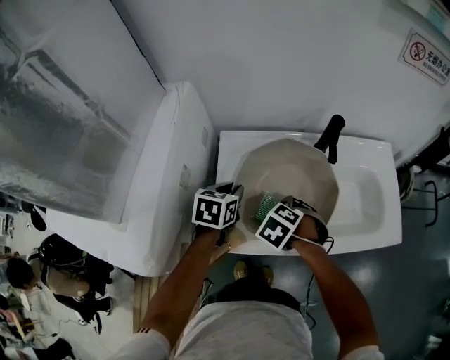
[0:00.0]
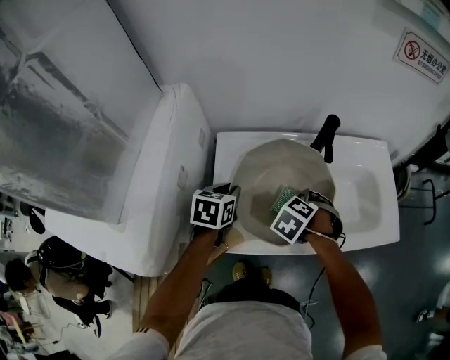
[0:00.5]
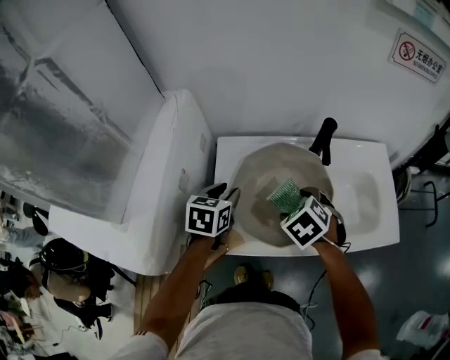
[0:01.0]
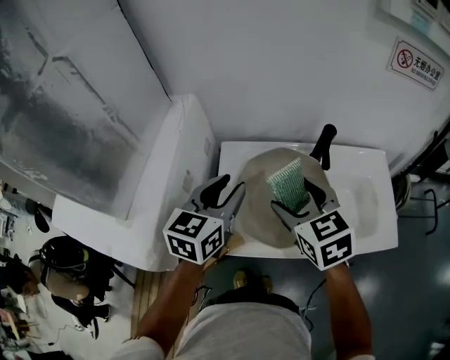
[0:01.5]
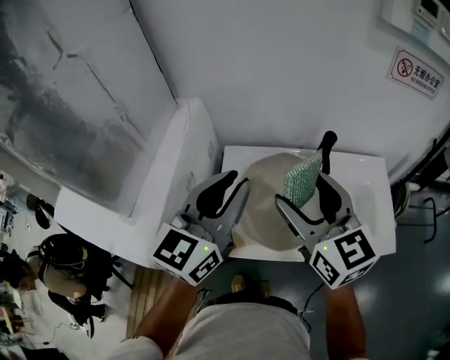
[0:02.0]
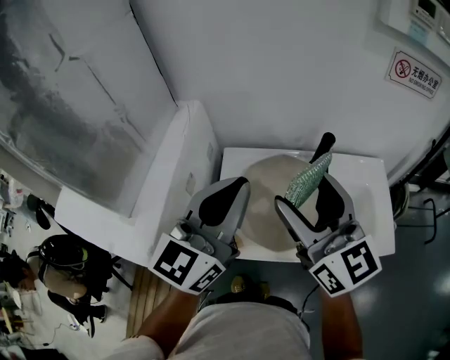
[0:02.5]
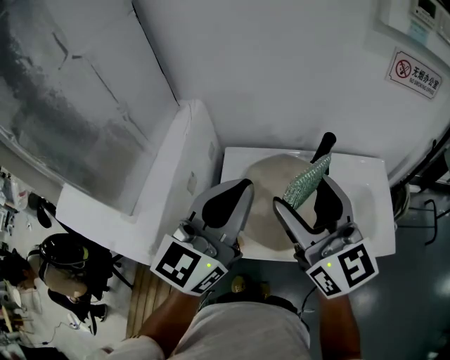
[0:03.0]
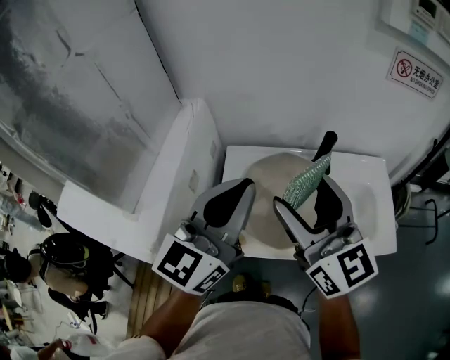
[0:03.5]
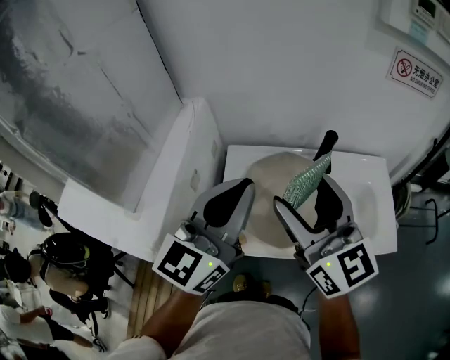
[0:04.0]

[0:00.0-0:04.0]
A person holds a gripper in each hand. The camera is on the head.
0:00.0 to 0:02.0: The grippers both shift upward by approximately 30 cm. The right gripper points its fingers approximately 70 degrees further upward, while the left gripper tips its fingers upward by some 50 degrees.
0:02.0 to 0:04.0: The left gripper closes.

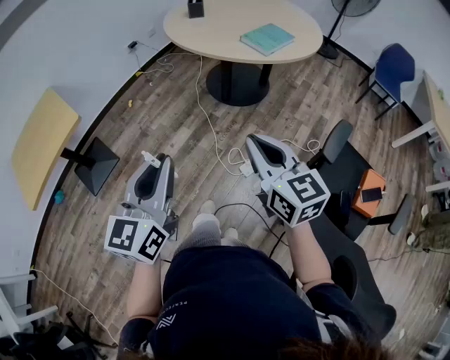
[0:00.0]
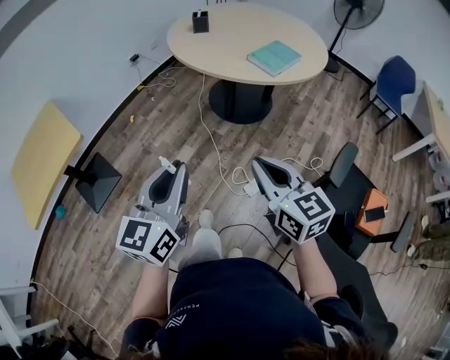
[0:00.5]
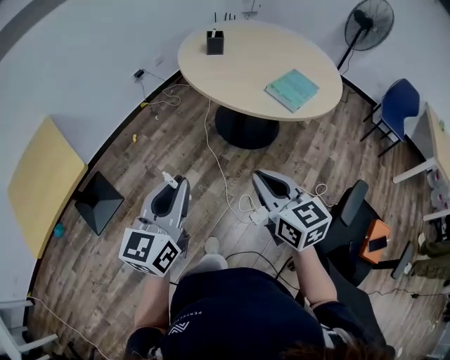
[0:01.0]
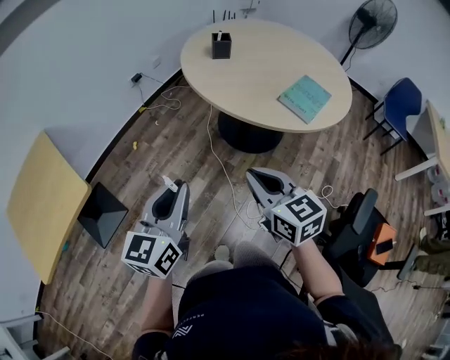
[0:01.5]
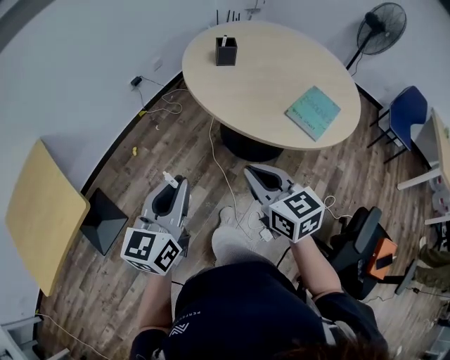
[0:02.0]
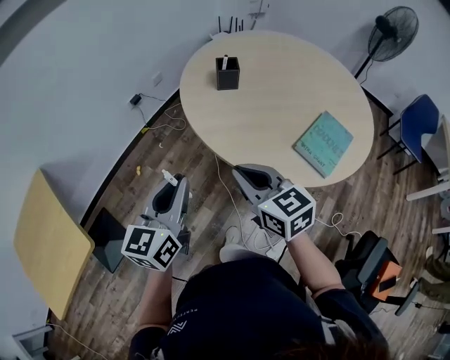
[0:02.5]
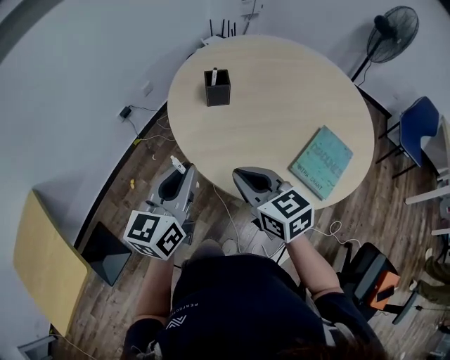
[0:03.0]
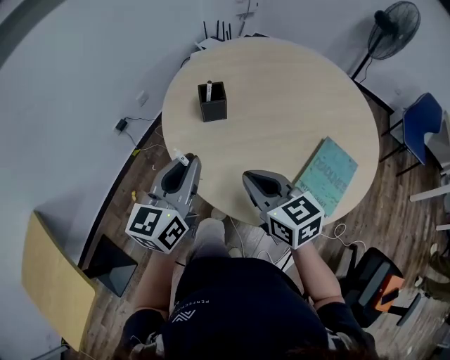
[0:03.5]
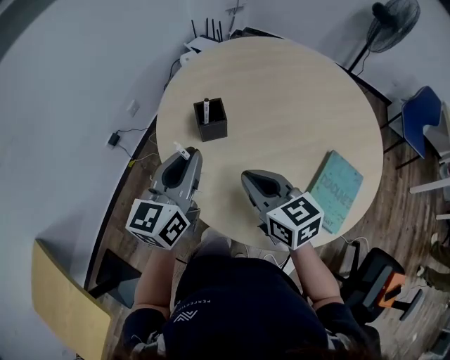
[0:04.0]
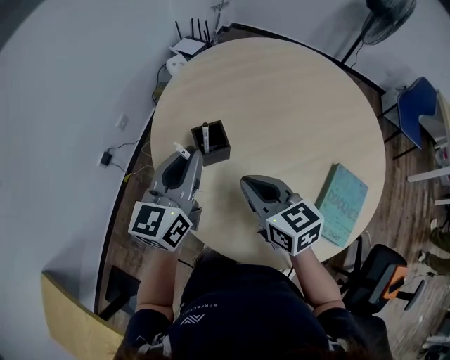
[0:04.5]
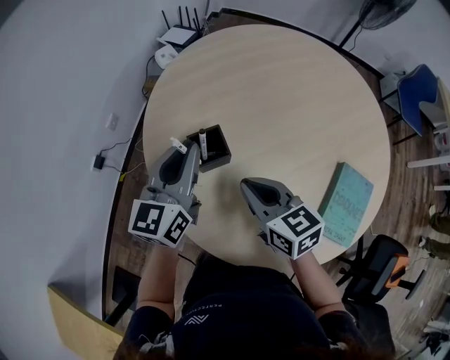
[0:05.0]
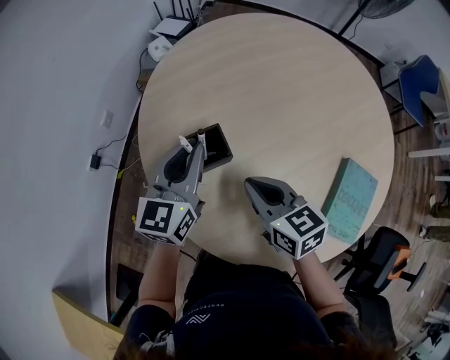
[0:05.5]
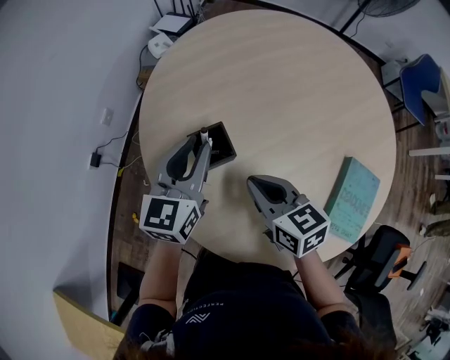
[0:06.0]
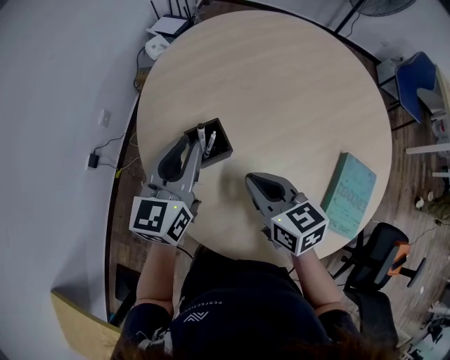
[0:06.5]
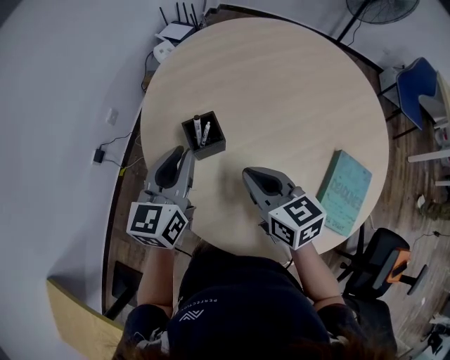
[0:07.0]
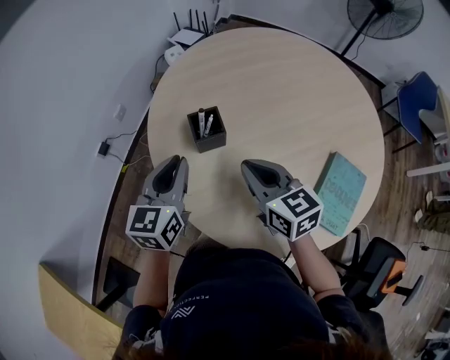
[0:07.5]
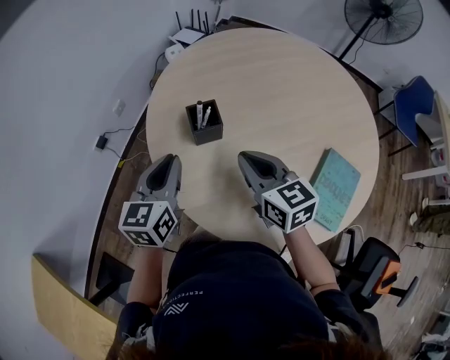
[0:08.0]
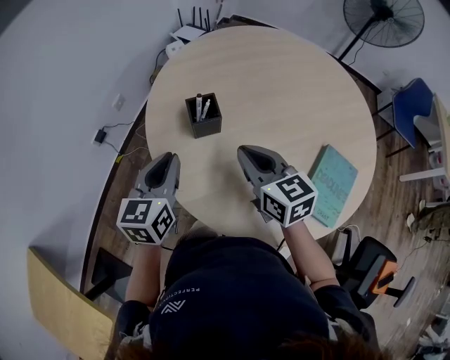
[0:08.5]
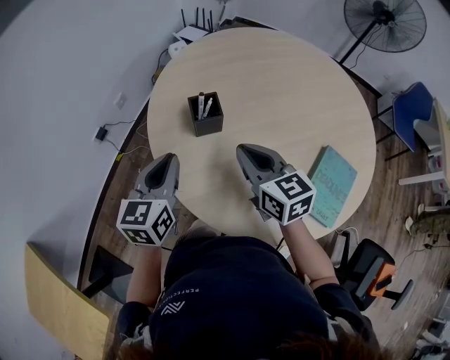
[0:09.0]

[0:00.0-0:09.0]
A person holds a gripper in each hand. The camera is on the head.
0:00.0 to 0:02.0: The grippers both shift forward by some 35 cm.
0:02.0 to 0:04.5: The pair of grippers is taken forward, some 50 cm.
0:04.5 to 0:07.0: The left gripper goes approximately 5 cm downward.
0:07.0 to 0:09.0: The left gripper shifts about 10 cm backward.

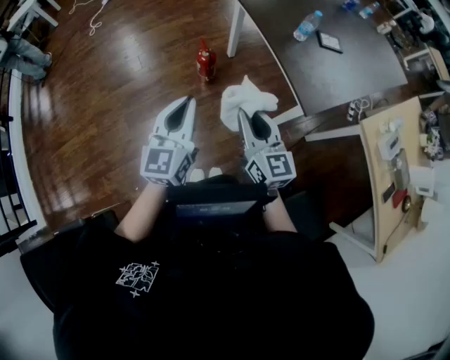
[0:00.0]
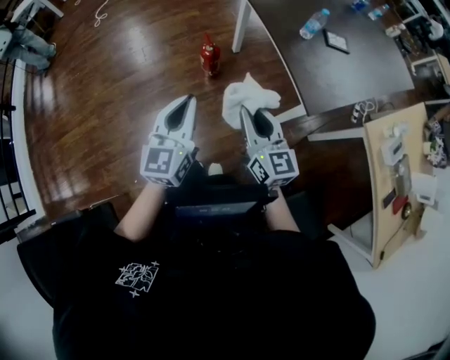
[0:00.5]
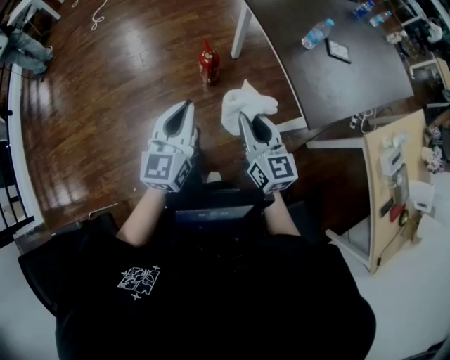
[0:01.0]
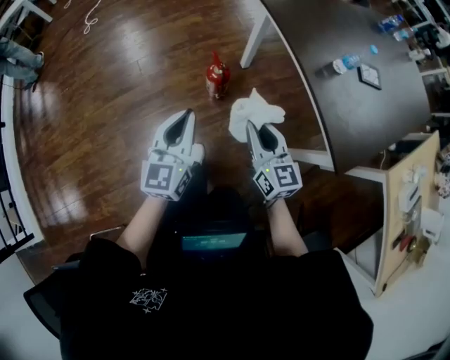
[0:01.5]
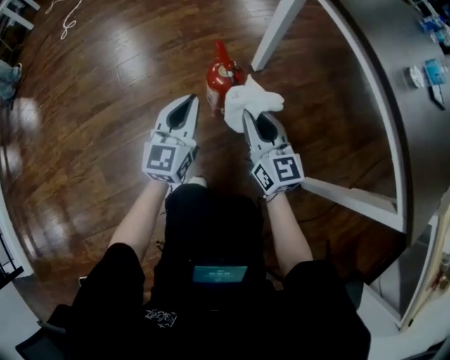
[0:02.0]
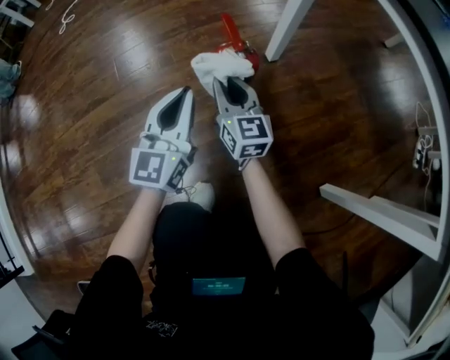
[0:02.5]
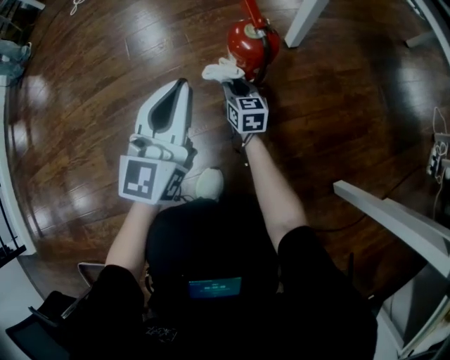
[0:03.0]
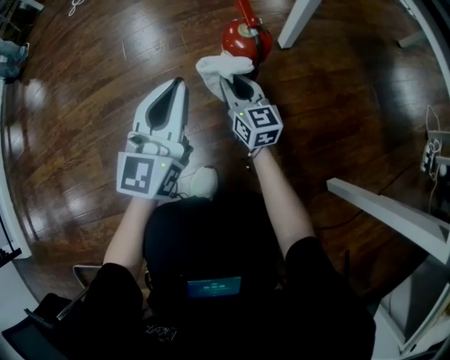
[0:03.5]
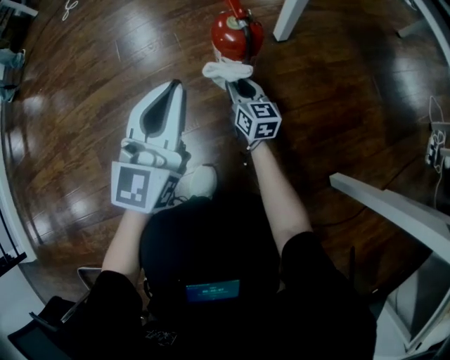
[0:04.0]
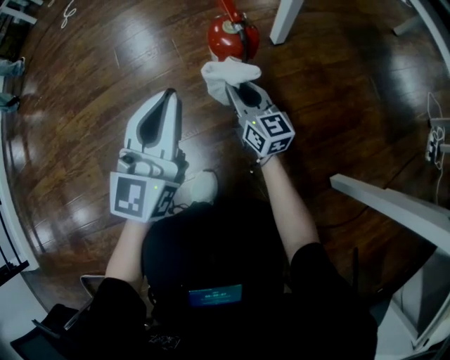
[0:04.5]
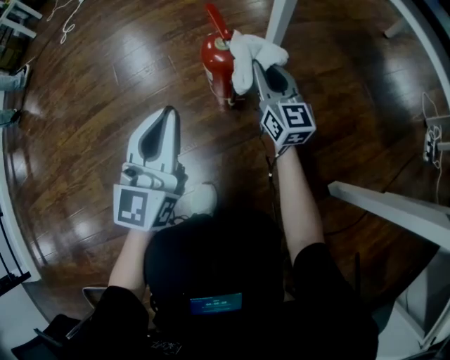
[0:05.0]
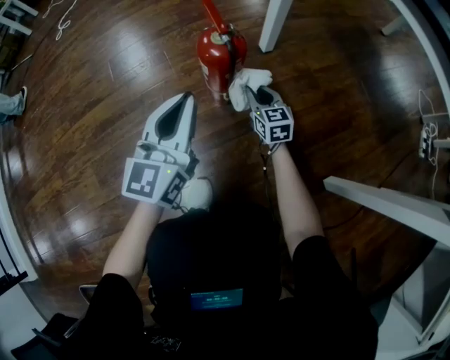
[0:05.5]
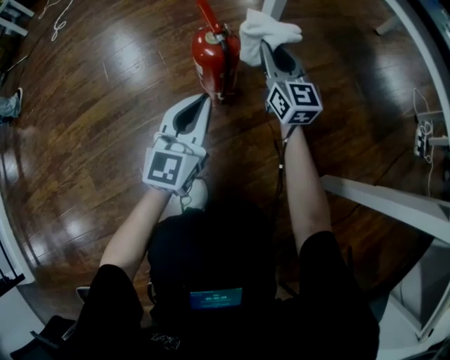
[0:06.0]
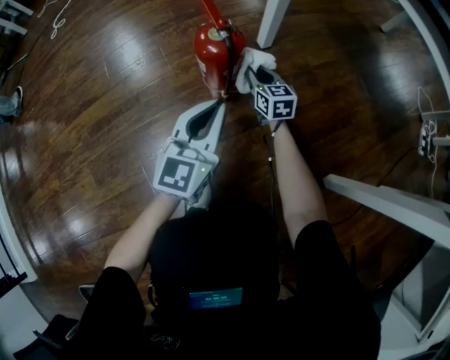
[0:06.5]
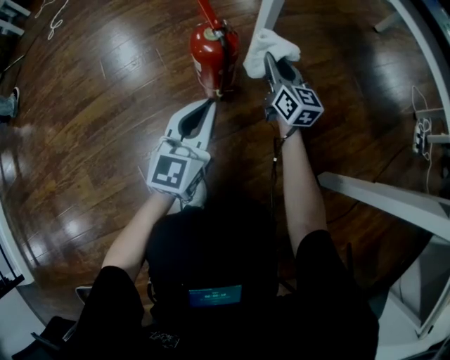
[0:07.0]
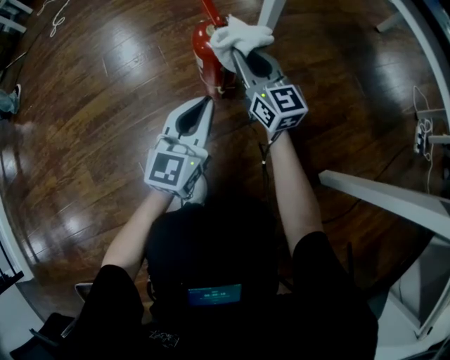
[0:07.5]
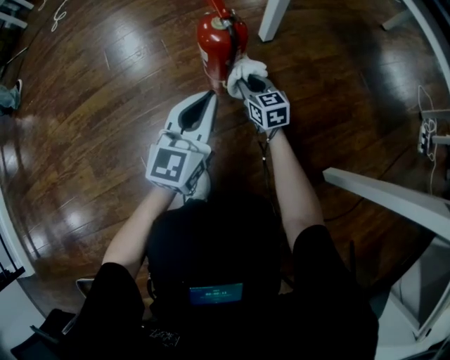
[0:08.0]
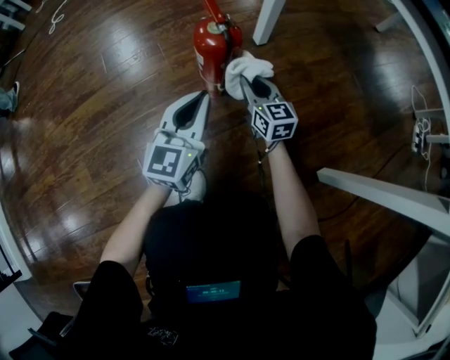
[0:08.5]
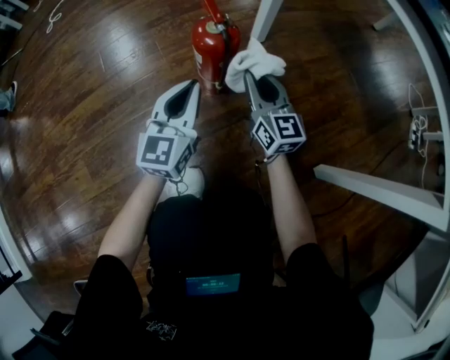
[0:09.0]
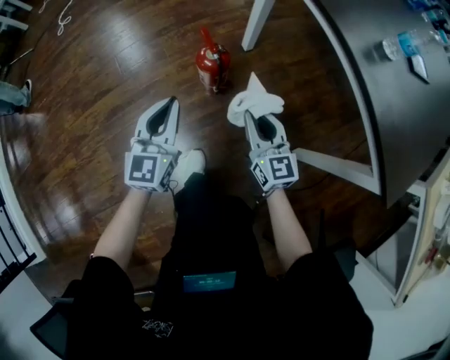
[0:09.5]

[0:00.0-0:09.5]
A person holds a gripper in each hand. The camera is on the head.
0:00.0 to 0:02.0: The grippers both shift downward and forward by about 60 cm.
0:02.0 to 0:04.0: The left gripper travels backward by some 5 cm; the right gripper moves up and down over roughly 30 cm, changing direction 2 times.
0:04.0 to 0:05.5: The right gripper shifts some 10 cm to the right, and moves about 15 cm upward and comes back.
0:05.5 to 0:07.5: The right gripper goes up and down, about 20 cm each way, reversing 2 times, and changes its angle by about 30 degrees. Meanwhile the left gripper moves downward, roughly 5 cm.
0:07.5 to 0:09.5: The right gripper travels upward and backward by approximately 25 cm; the left gripper moves upward, approximately 25 cm.

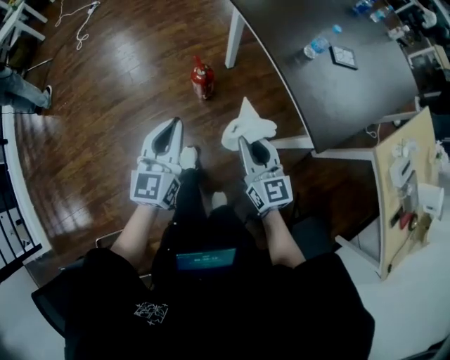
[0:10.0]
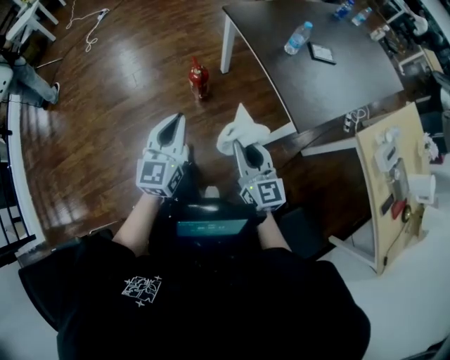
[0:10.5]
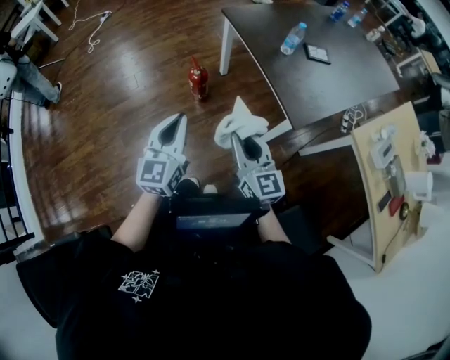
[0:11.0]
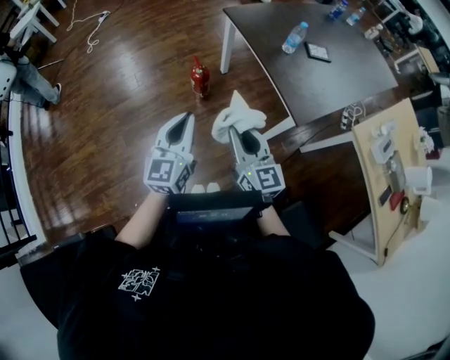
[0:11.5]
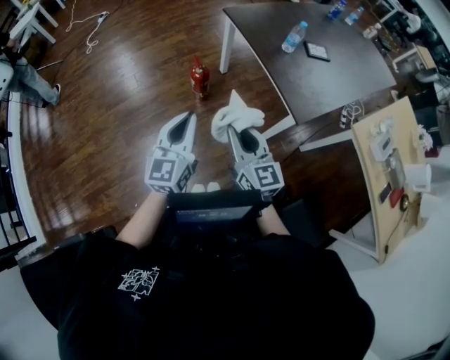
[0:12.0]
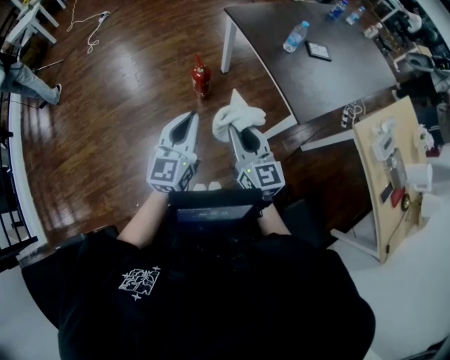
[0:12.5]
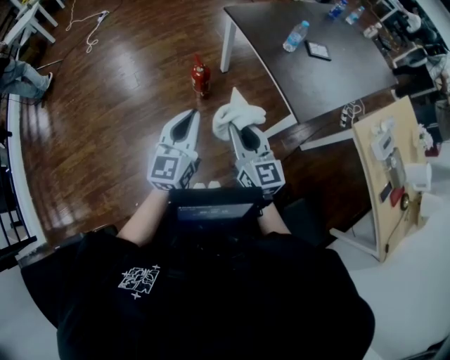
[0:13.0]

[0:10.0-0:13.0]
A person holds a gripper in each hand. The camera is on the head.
0:10.0 to 0:11.5: The grippers both shift backward and upward by roughly 20 cm.
0:11.5 to 0:13.0: Both grippers stay about where they are.

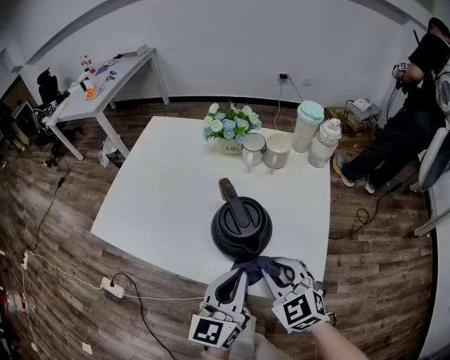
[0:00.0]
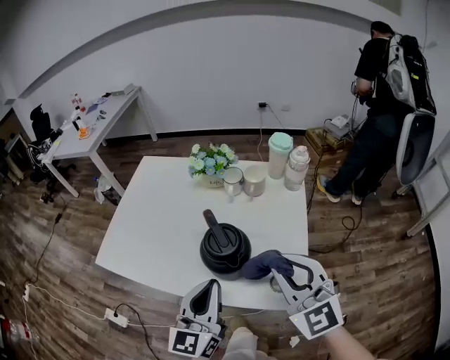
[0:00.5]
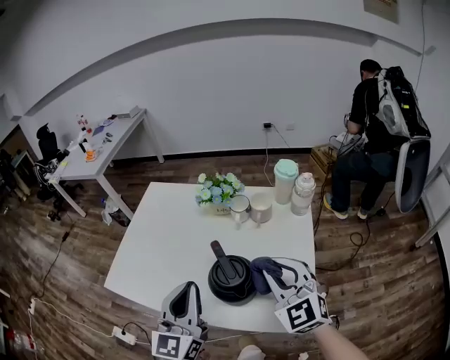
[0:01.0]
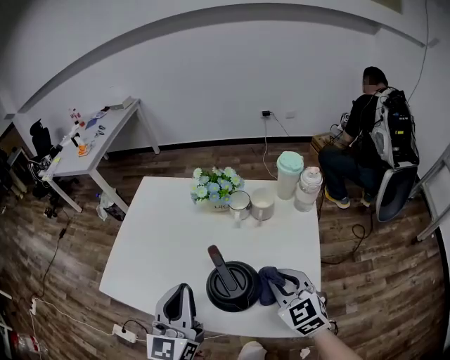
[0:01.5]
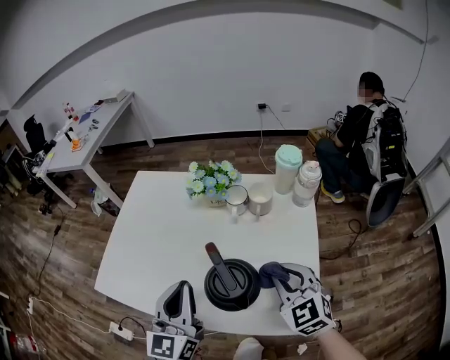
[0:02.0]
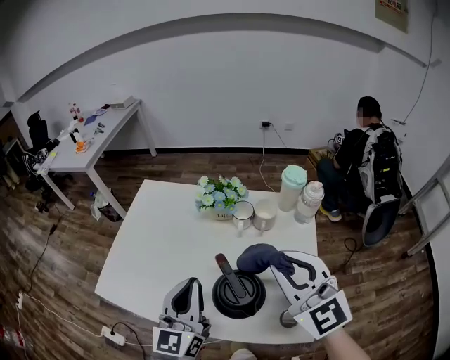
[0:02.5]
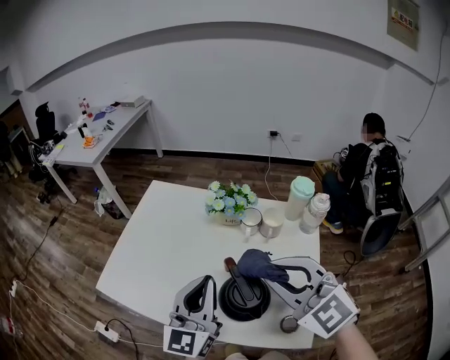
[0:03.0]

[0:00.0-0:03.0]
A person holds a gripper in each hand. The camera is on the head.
0:00.0 to 0:01.5: The left gripper is displaced to the left, forward and upward by some 15 cm; the right gripper is displaced forward and to the right by approximately 10 cm, and goes upward and returns, roughly 15 cm each way.
0:01.5 to 0:03.0: The right gripper travels upward by approximately 20 cm, and turns by approximately 30 degrees, while the left gripper goes about 5 cm upward.
